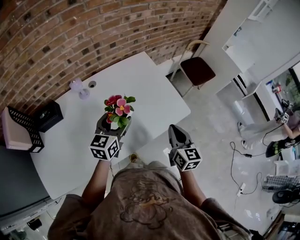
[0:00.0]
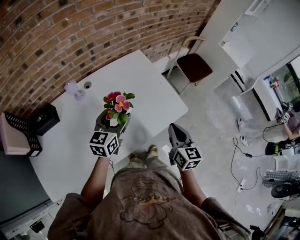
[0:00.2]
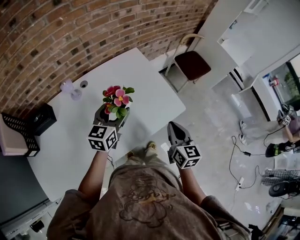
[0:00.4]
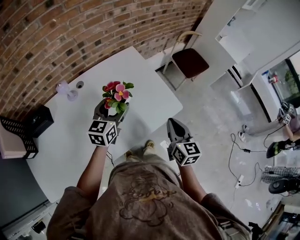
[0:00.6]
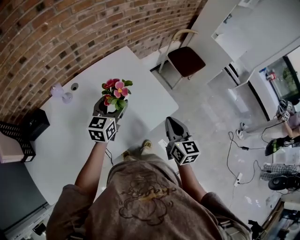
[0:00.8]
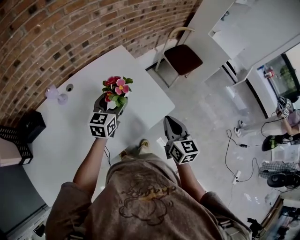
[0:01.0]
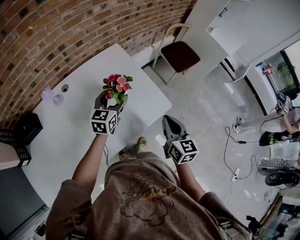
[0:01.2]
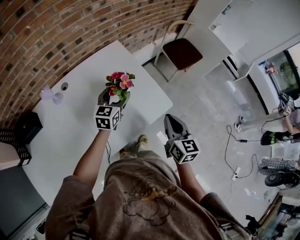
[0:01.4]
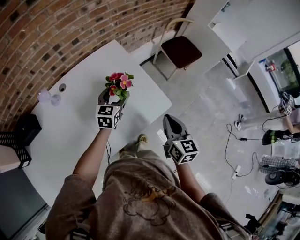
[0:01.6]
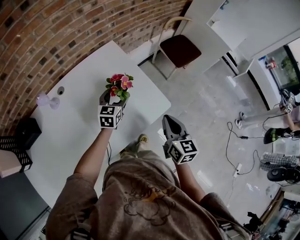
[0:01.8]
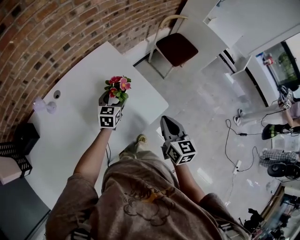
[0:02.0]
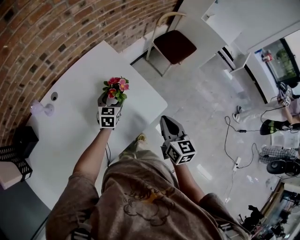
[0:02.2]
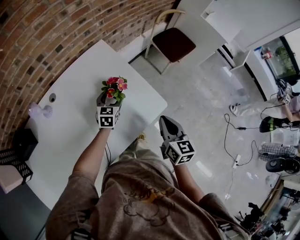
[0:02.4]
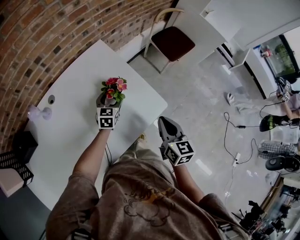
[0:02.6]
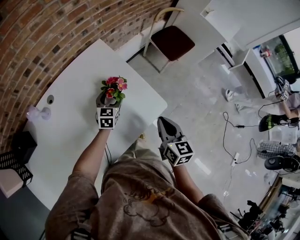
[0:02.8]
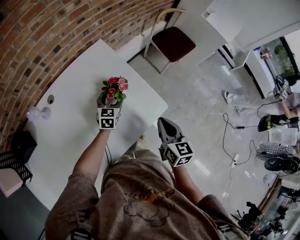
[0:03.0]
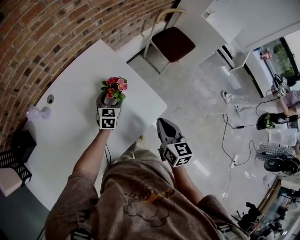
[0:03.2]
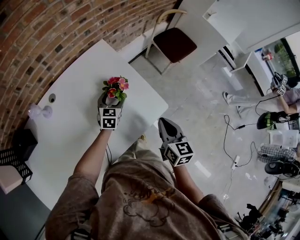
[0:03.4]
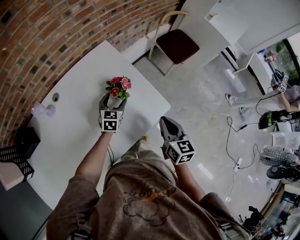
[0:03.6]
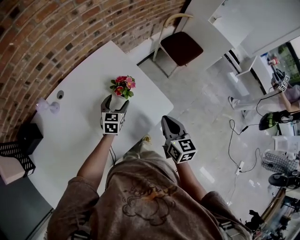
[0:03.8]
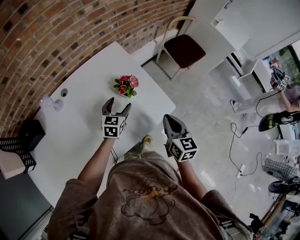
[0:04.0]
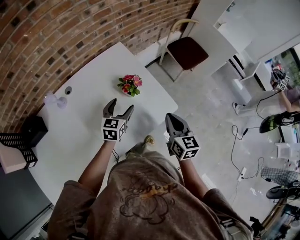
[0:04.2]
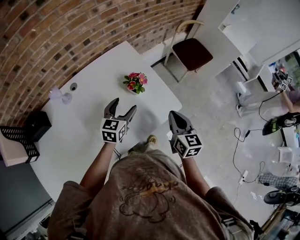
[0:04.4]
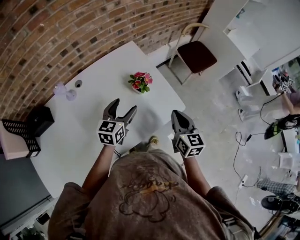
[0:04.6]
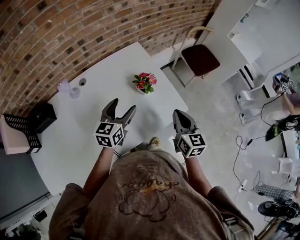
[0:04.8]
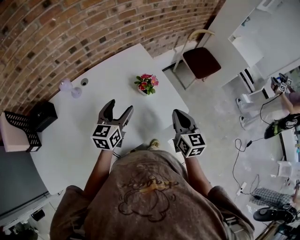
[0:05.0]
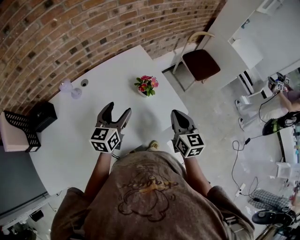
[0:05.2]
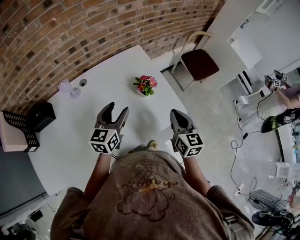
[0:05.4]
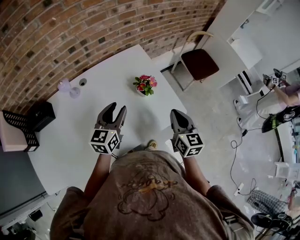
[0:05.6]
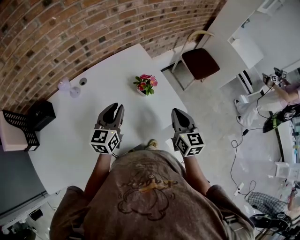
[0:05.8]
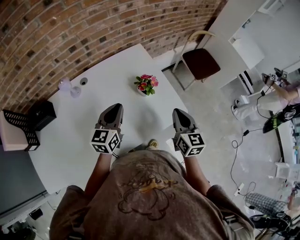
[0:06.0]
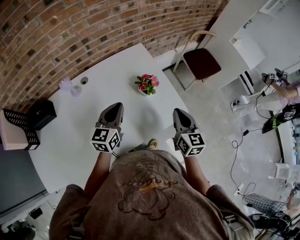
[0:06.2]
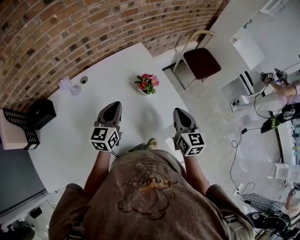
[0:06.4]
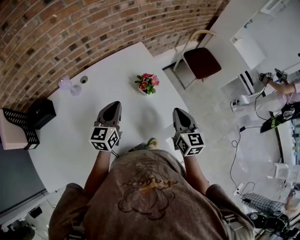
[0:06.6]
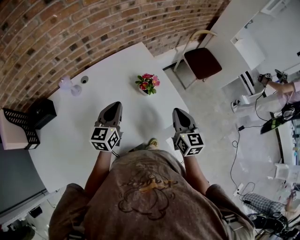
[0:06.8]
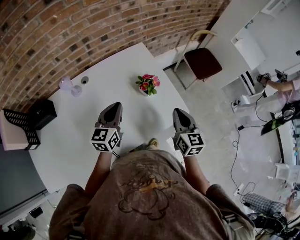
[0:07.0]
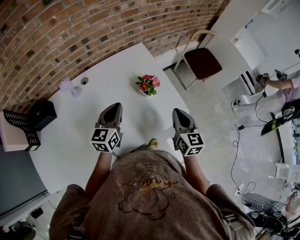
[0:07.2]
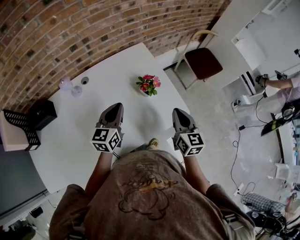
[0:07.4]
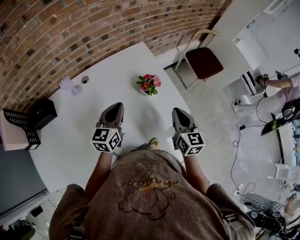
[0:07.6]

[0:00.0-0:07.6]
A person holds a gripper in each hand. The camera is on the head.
0.0 to 1.6 s: The left gripper heads forward, to the right and downward, covering approximately 25 cm. The right gripper travels to the right and forward by approximately 15 cm.
1.6 to 3.0 s: The left gripper goes about 10 cm downward and forward.
3.0 to 4.6 s: The left gripper shifts approximately 20 cm upward and backward.
4.6 to 6.0 s: The left gripper travels to the left by some 5 cm, and closes.
6.0 to 7.6 s: The grippers stay close to where they were, moving slightly.

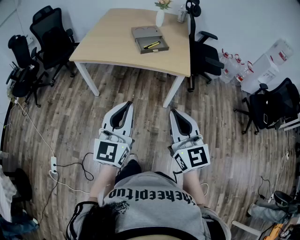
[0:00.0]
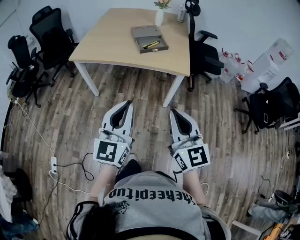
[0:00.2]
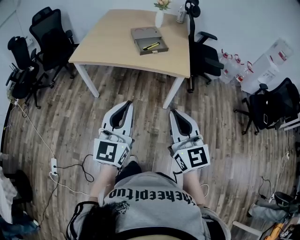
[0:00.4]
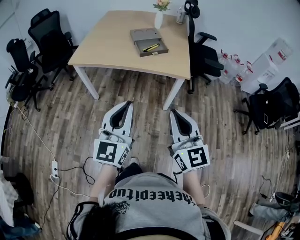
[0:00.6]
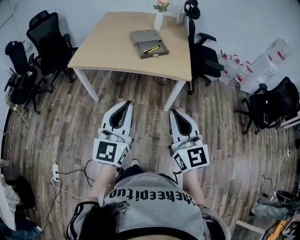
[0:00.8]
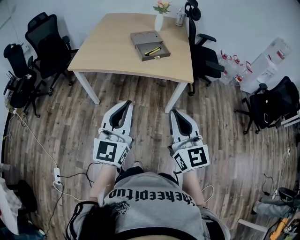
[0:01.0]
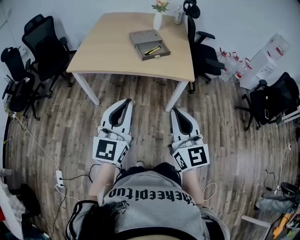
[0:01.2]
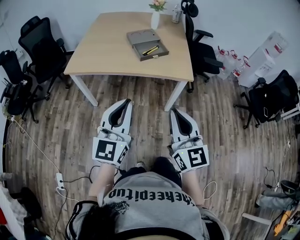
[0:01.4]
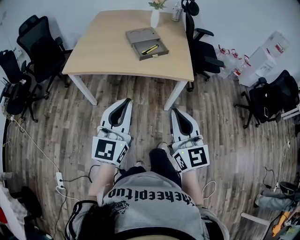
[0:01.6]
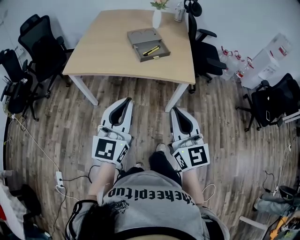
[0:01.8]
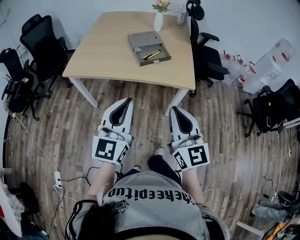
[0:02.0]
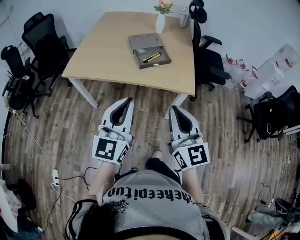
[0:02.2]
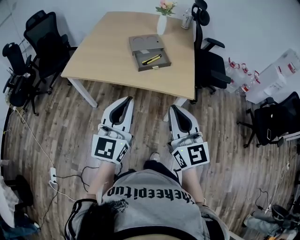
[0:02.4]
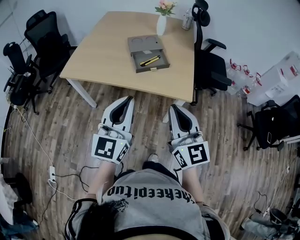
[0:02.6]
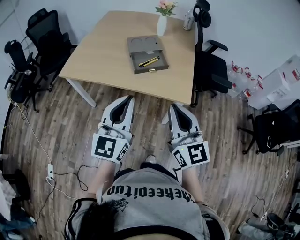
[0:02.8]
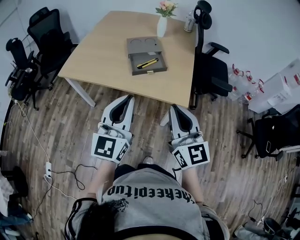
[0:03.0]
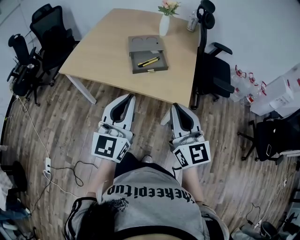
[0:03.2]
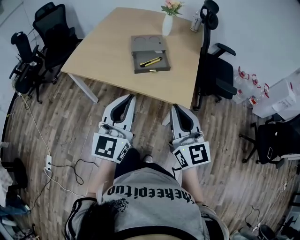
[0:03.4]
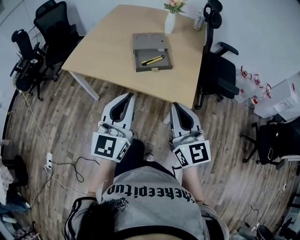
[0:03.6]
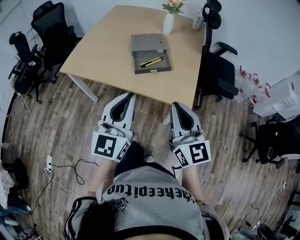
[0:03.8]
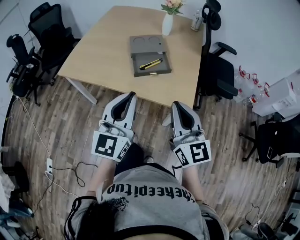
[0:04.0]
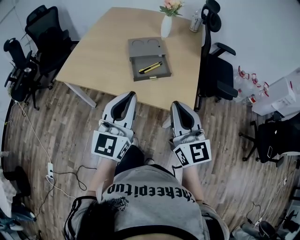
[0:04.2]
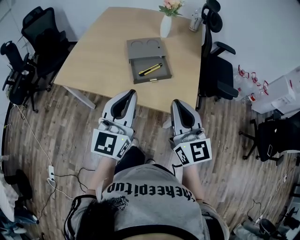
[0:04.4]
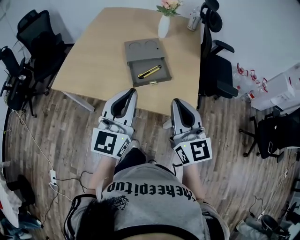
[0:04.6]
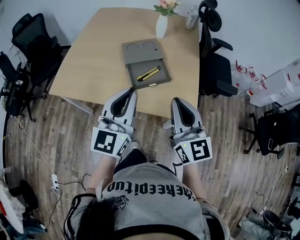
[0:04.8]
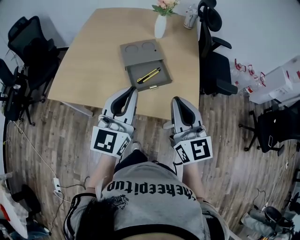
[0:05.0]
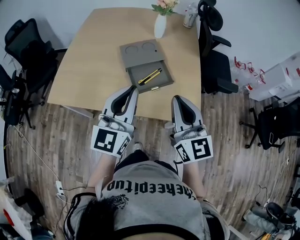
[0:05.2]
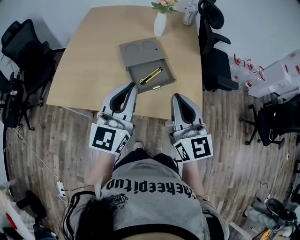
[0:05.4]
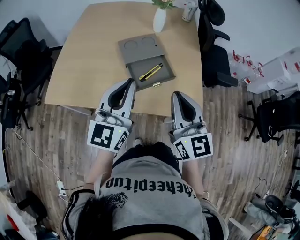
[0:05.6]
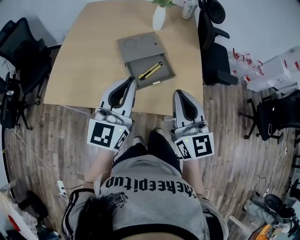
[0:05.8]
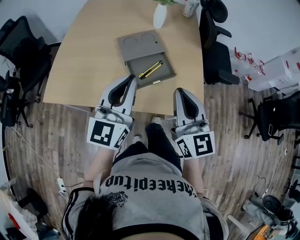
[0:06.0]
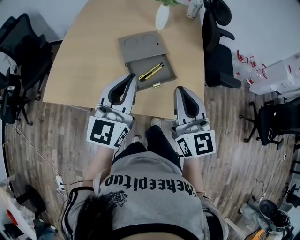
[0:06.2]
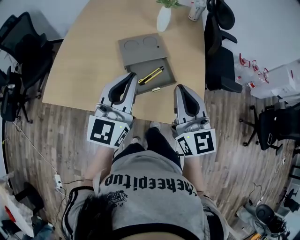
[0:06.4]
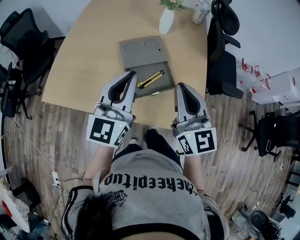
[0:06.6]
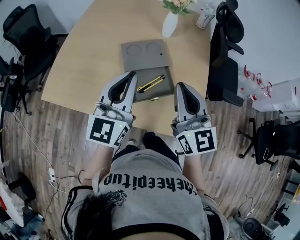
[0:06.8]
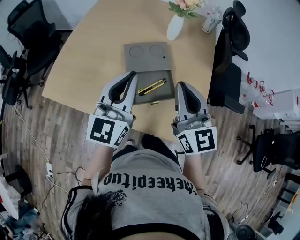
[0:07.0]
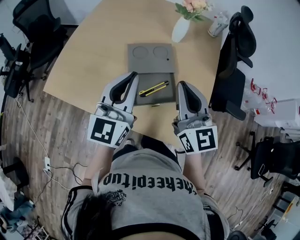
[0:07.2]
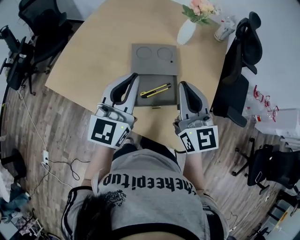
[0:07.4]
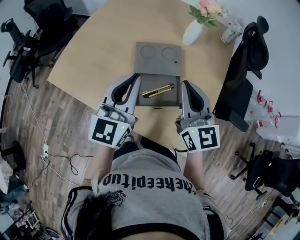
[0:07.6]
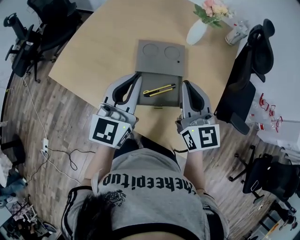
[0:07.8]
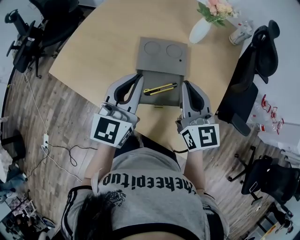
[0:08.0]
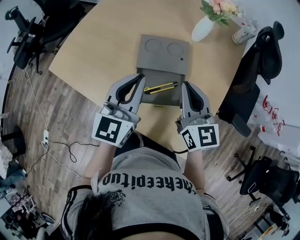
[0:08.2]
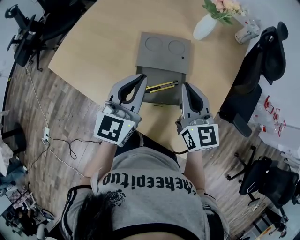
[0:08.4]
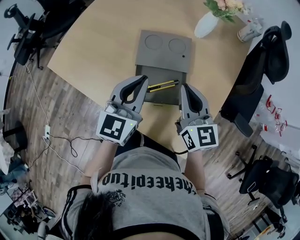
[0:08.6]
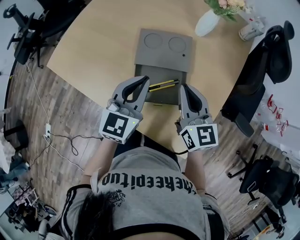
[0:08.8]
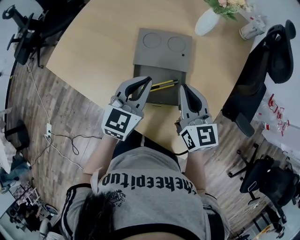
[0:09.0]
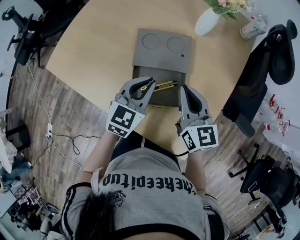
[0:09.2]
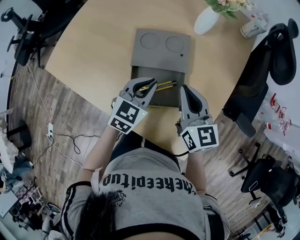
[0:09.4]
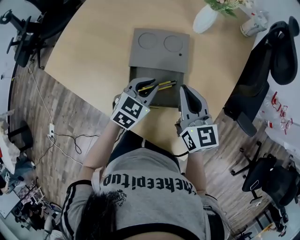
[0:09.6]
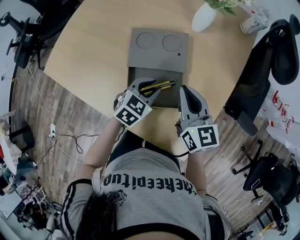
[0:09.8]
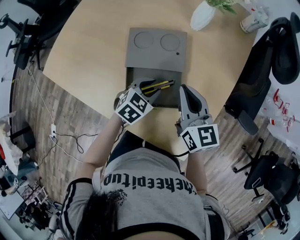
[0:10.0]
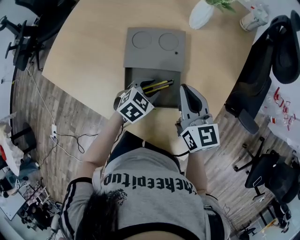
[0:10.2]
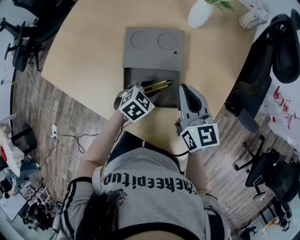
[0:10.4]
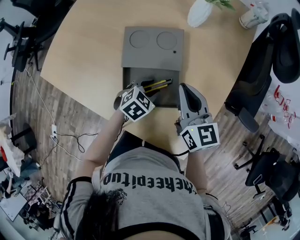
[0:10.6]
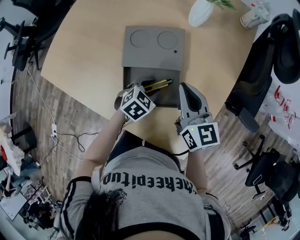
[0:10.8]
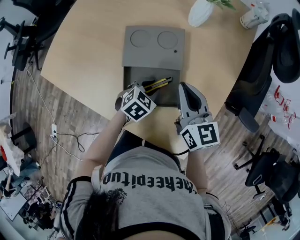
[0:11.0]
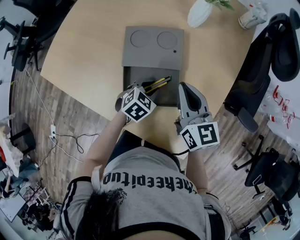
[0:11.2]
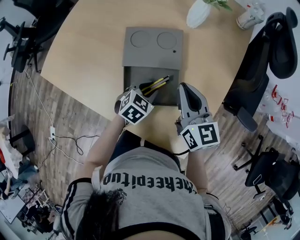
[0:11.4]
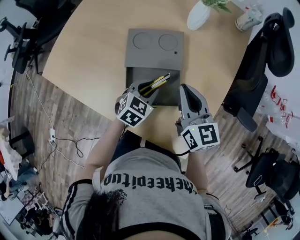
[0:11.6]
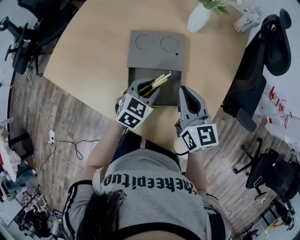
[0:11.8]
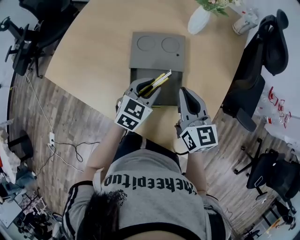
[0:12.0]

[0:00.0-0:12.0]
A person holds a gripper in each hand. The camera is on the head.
0.0 to 1.6 s: The two grippers go some 10 cm forward.
1.6 to 3.0 s: Both grippers move forward and to the right, about 20 cm.
3.0 to 4.4 s: The grippers both shift forward by approximately 10 cm.
4.4 to 6.0 s: Both grippers travel together forward and to the left, roughly 15 cm.
6.0 to 7.6 s: The right gripper heads forward, covering roughly 20 cm, and rotates roughly 20 degrees. Meanwhile the left gripper is displaced forward by roughly 15 cm, and changes its angle by some 20 degrees.
7.6 to 9.0 s: The right gripper is displaced downward by roughly 10 cm; the left gripper heads downward and to the right, covering roughly 15 cm, and changes its angle by about 20 degrees.
9.0 to 10.4 s: The left gripper goes about 20 cm downward, points its fingers roughly 40 degrees further downward, and opens; the right gripper ends up roughly 5 cm from where it was.
10.4 to 12.0 s: The left gripper heads upward, covering some 10 cm, and swivels about 30 degrees.

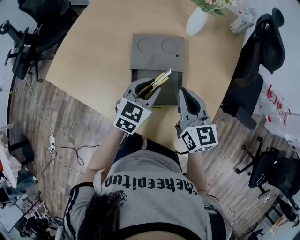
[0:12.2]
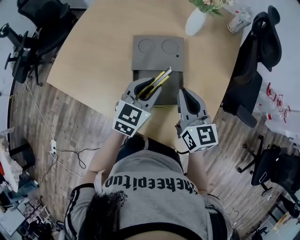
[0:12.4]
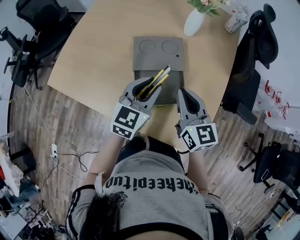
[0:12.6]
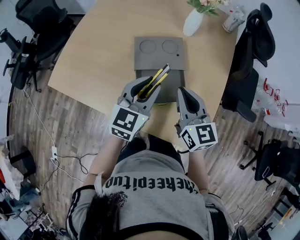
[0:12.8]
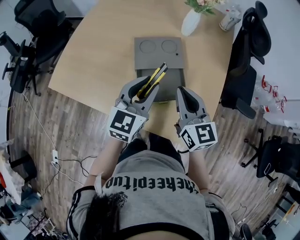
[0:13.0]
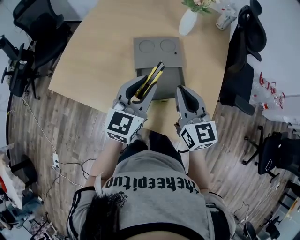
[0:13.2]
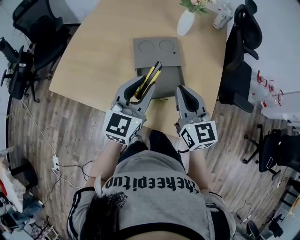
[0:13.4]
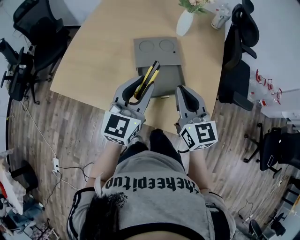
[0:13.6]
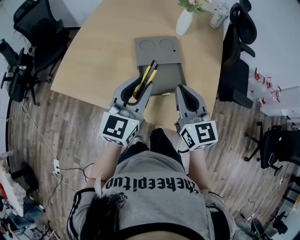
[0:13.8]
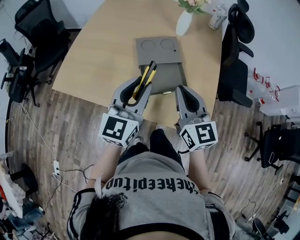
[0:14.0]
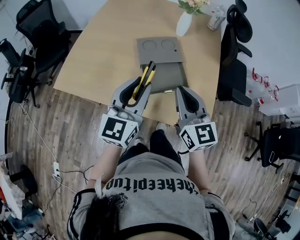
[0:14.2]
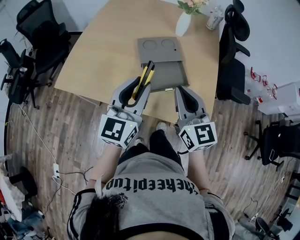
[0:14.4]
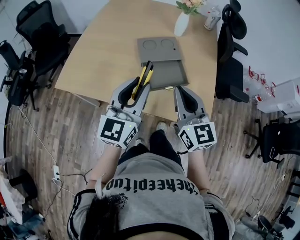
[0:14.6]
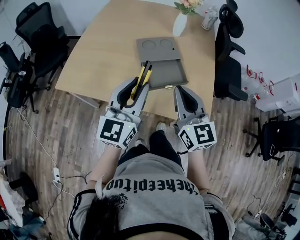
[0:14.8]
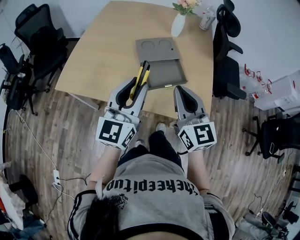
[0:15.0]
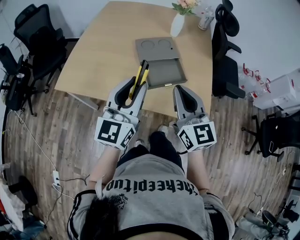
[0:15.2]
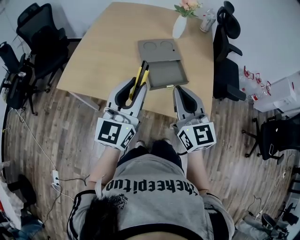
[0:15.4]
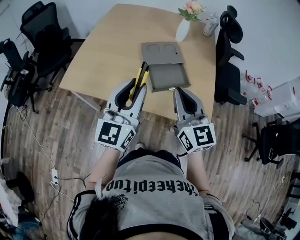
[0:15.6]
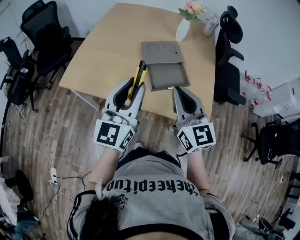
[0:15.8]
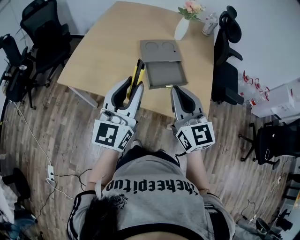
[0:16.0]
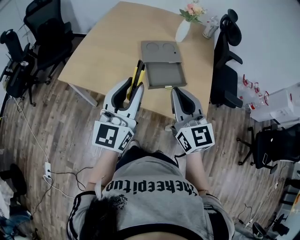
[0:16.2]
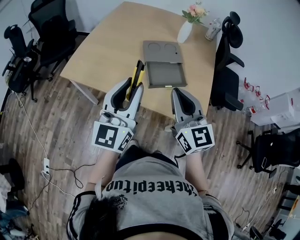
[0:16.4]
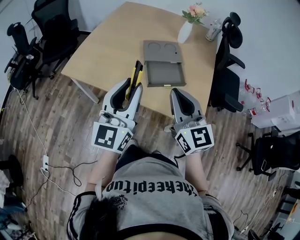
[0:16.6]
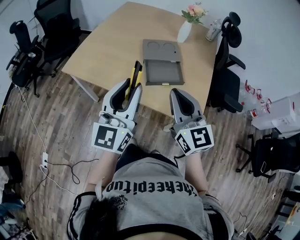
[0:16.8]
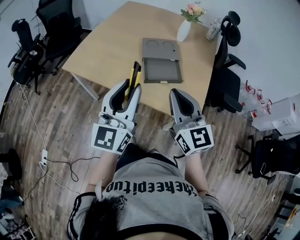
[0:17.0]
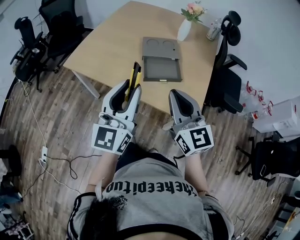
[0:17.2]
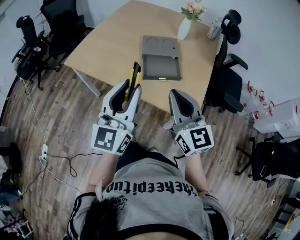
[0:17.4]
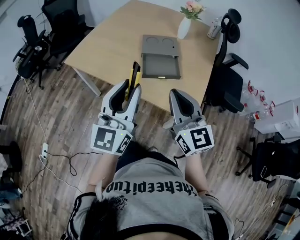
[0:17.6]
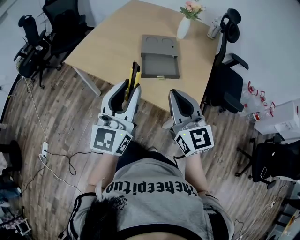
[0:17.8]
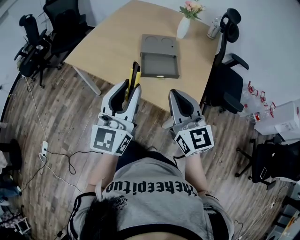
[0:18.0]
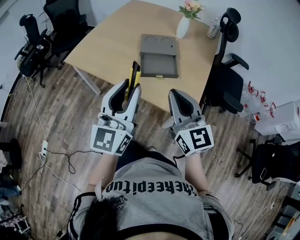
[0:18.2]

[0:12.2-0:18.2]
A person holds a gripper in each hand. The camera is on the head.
12.2 to 13.8 s: The right gripper moves backward, upward and to the left, about 15 cm. The left gripper heads upward, backward and to the left, covering roughly 20 cm, and swivels about 30 degrees.
13.8 to 15.2 s: The left gripper moves backward and to the left, roughly 10 cm; the right gripper moves backward, about 10 cm.
15.2 to 16.6 s: The left gripper shifts roughly 5 cm backward.
16.6 to 18.2 s: The right gripper heads to the right and backward, covering approximately 10 cm, while the left gripper travels backward and to the right by roughly 10 cm.
